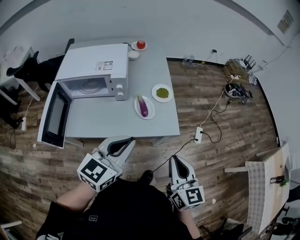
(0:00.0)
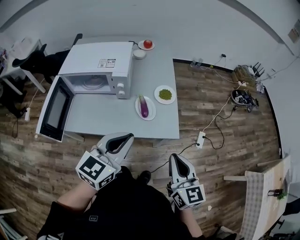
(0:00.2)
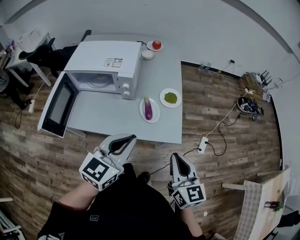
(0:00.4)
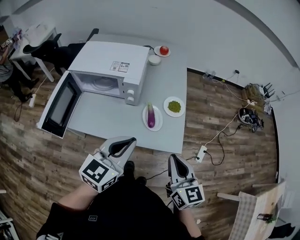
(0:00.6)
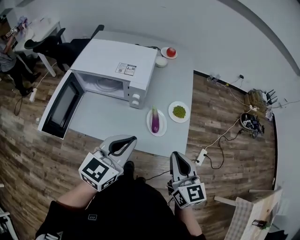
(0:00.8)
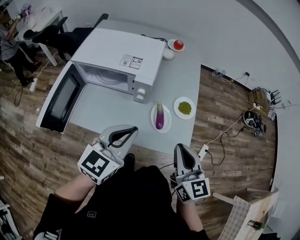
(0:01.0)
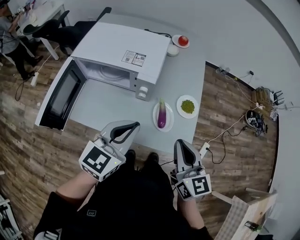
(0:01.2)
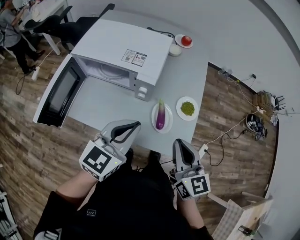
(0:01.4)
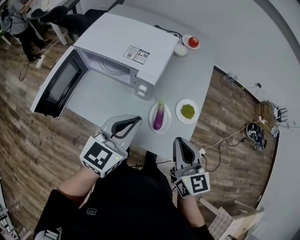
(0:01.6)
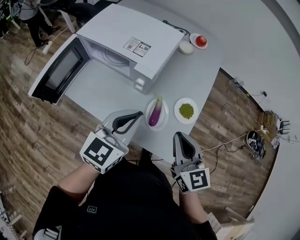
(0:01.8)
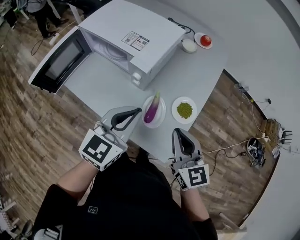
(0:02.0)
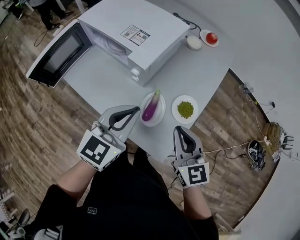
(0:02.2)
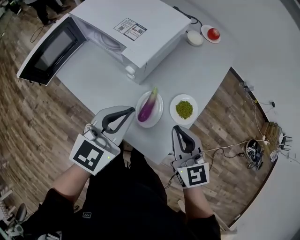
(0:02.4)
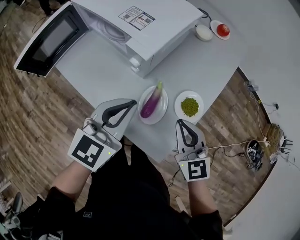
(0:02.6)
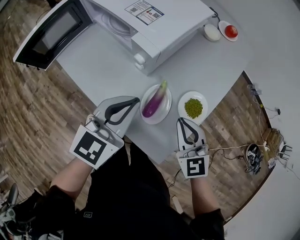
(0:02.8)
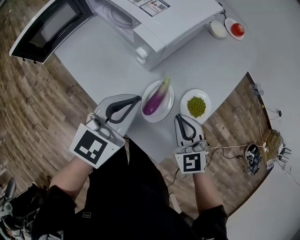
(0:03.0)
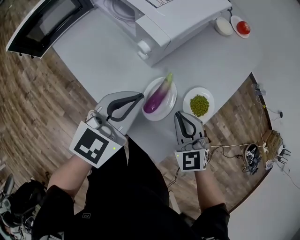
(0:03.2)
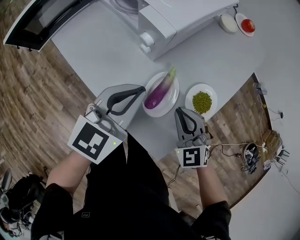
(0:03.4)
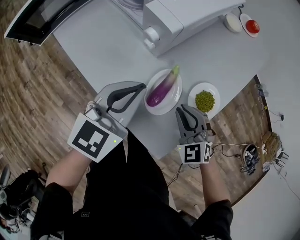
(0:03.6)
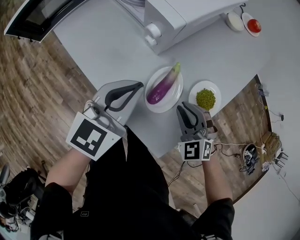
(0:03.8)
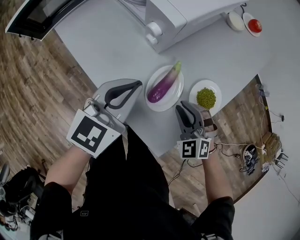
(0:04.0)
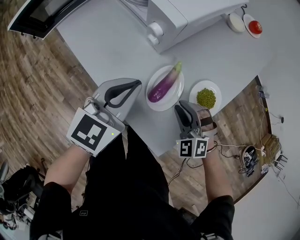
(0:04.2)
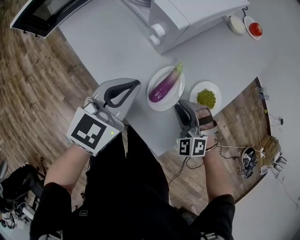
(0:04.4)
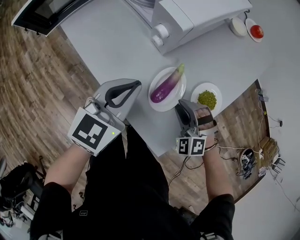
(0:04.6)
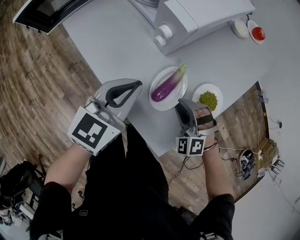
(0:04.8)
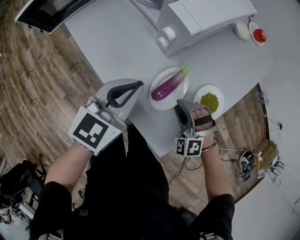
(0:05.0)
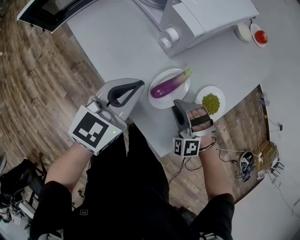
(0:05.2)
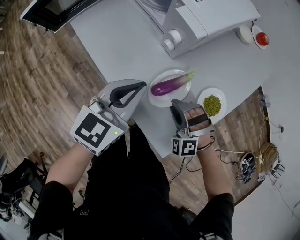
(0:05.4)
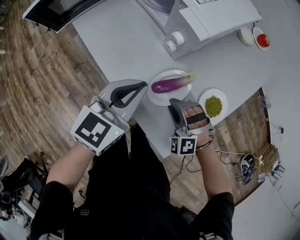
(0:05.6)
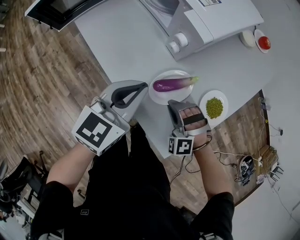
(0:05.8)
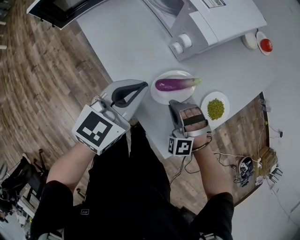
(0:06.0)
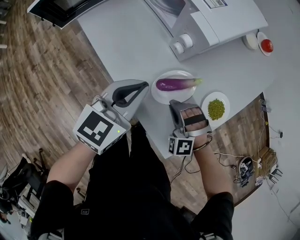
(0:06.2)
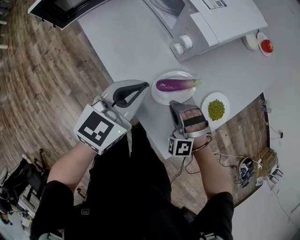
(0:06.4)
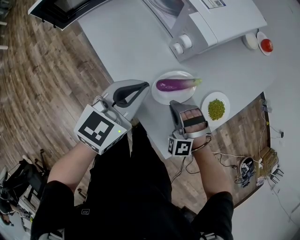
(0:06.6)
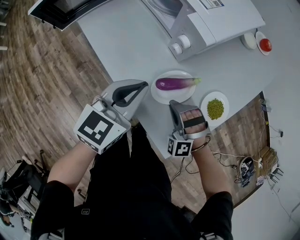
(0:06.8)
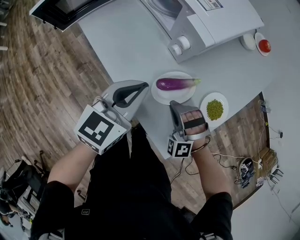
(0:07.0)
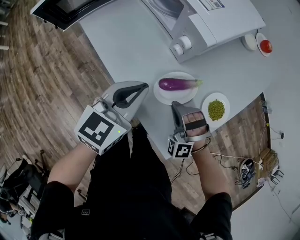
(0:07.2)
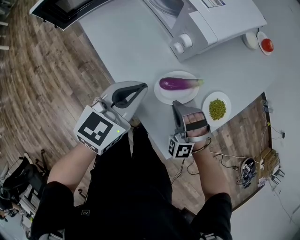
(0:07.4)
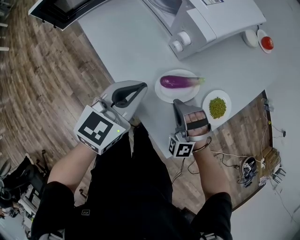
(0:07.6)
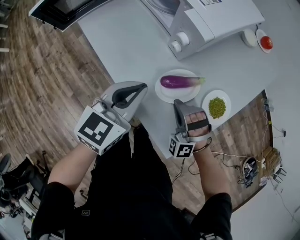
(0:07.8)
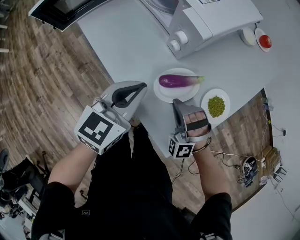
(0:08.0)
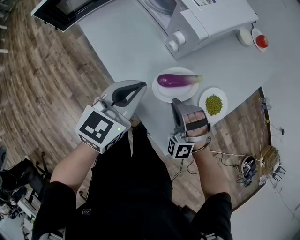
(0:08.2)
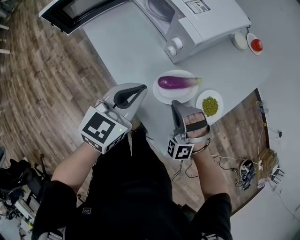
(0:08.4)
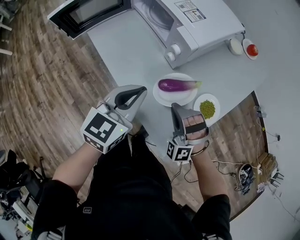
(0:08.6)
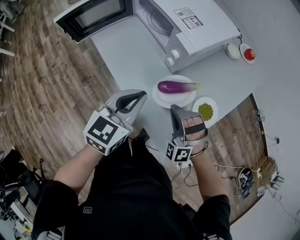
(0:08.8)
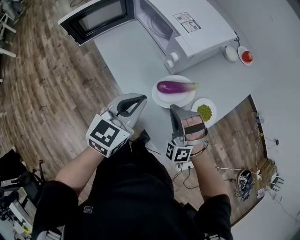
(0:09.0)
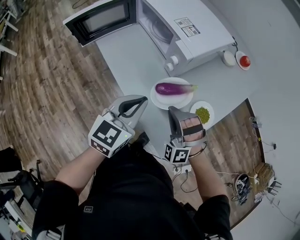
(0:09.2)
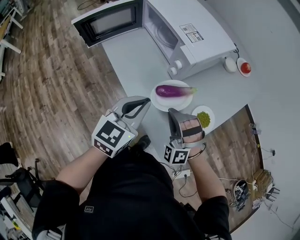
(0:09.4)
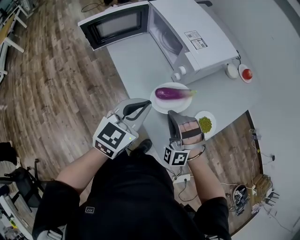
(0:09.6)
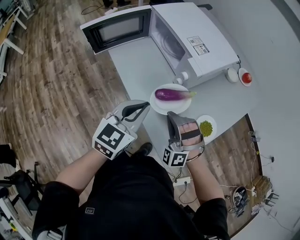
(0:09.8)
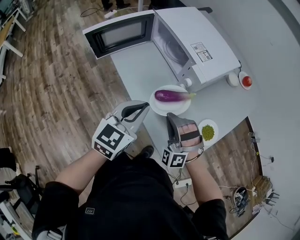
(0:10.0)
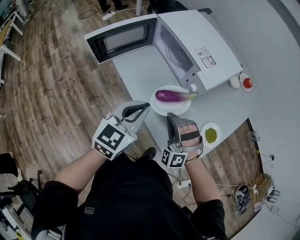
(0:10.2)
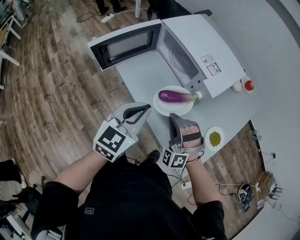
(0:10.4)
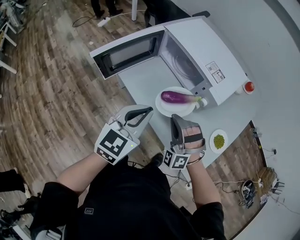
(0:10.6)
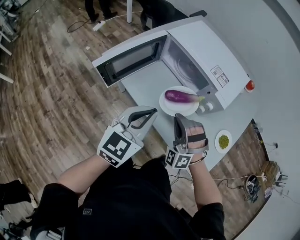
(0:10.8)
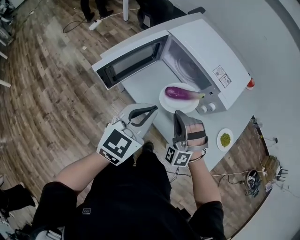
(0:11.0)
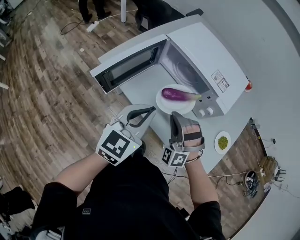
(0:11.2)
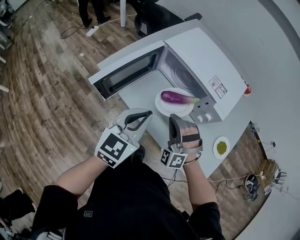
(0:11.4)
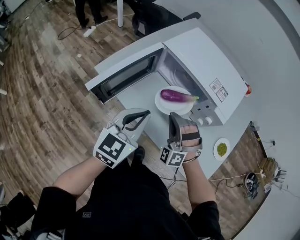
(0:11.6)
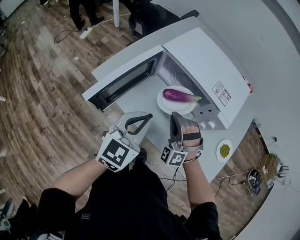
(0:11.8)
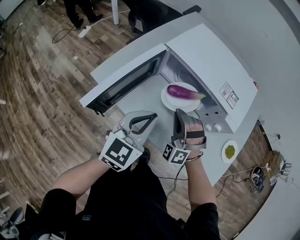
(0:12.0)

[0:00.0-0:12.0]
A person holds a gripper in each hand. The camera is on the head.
0:00.0 to 0:01.6: The left gripper ends up approximately 20 cm from where it was, and changes its angle by roughly 30 degrees. Meanwhile the right gripper changes place by roughly 25 cm, and rotates approximately 30 degrees.
0:01.6 to 0:03.0: The right gripper goes roughly 20 cm downward and forward, and swivels about 50 degrees, while the left gripper goes some 15 cm downward and to the right, and rotates approximately 20 degrees.
0:03.0 to 0:04.4: The right gripper moves downward, some 10 cm, rolls counterclockwise, seen from behind, by some 40 degrees, and opens up, while the left gripper changes place by some 5 cm.
0:04.4 to 0:06.0: The right gripper shifts about 10 cm to the left.
0:06.0 to 0:07.6: The grippers make only small movements.
0:07.6 to 0:09.0: The left gripper shifts approximately 10 cm upward; the right gripper shifts roughly 10 cm upward.
0:09.0 to 0:10.4: The grippers both shift to the left by some 15 cm.
0:10.4 to 0:12.0: The grippers both shift forward and to the left by roughly 20 cm. The right gripper swivels about 20 degrees.

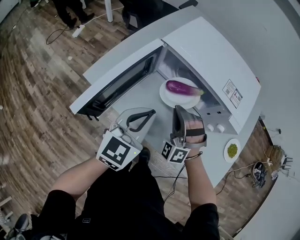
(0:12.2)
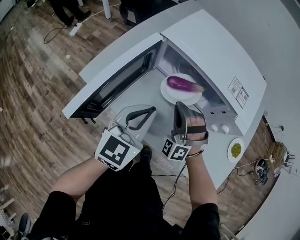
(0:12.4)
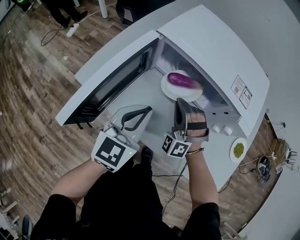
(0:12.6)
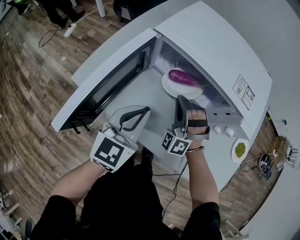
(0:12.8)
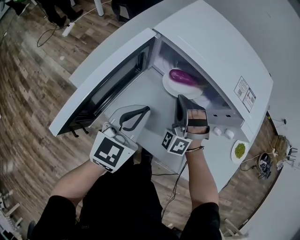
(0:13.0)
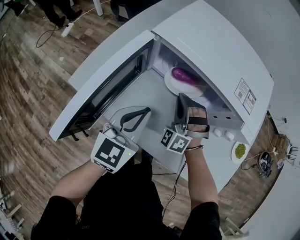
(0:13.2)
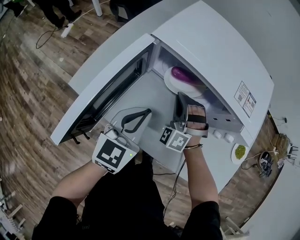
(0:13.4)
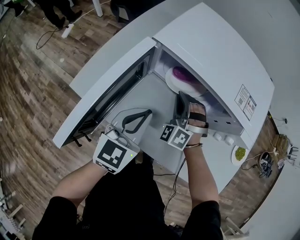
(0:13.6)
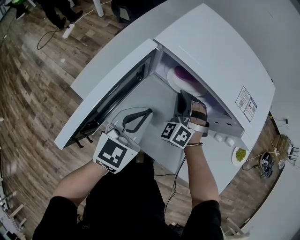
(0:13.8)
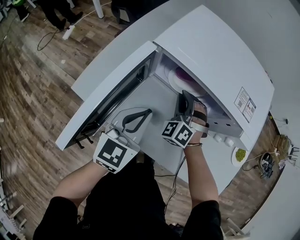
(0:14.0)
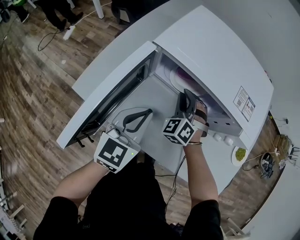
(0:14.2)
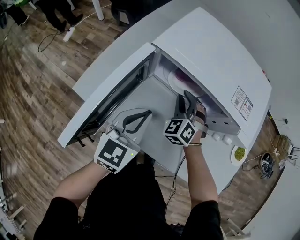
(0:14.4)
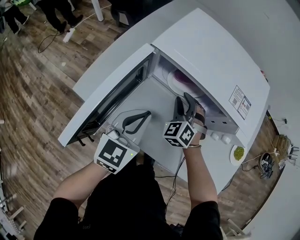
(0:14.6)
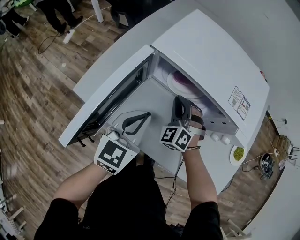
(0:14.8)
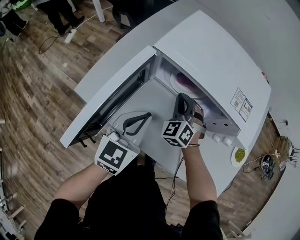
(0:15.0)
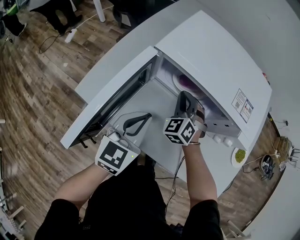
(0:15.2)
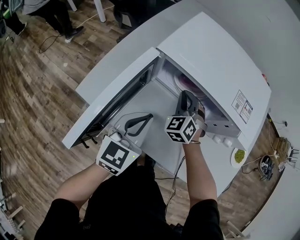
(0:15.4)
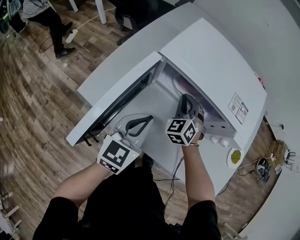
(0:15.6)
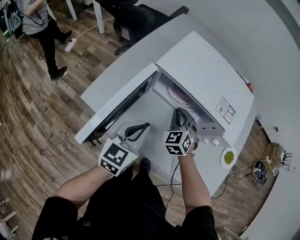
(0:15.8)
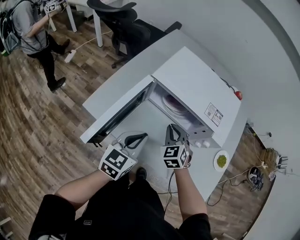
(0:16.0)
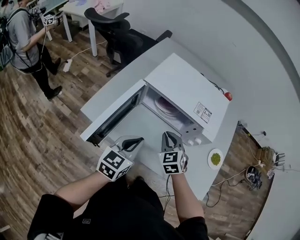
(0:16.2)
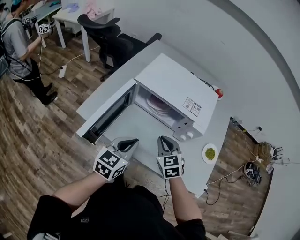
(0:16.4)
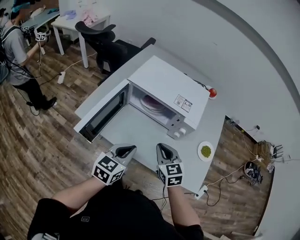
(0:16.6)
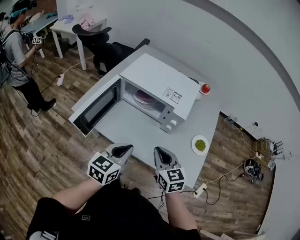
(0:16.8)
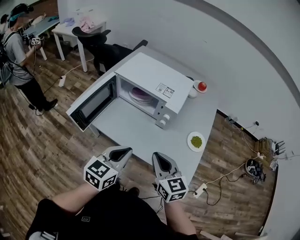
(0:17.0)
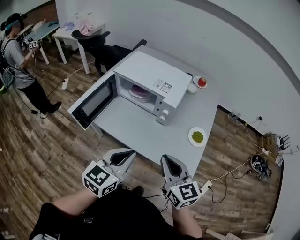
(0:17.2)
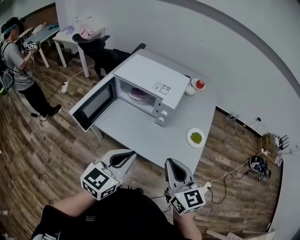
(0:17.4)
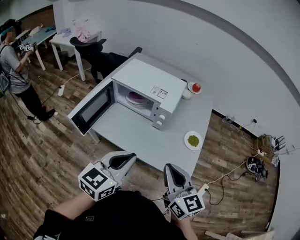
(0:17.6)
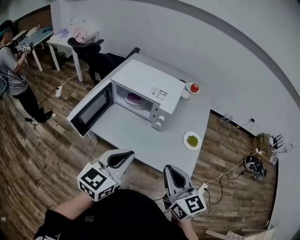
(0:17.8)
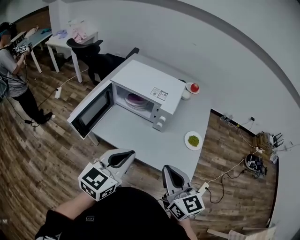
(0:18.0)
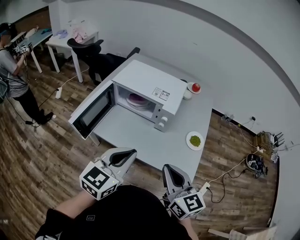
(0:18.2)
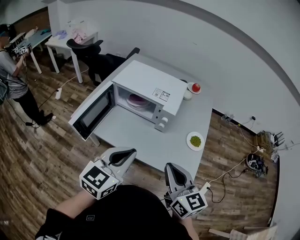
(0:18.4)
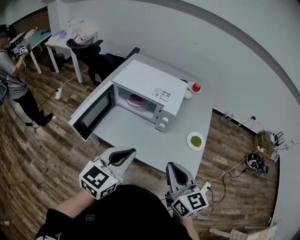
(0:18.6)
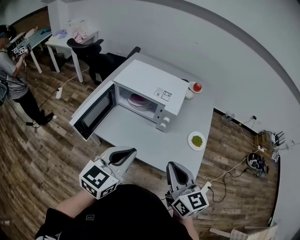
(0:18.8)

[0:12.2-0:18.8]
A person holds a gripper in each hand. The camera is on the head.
0:12.2 to 0:13.8: The left gripper moves forward and downward, some 10 cm. The right gripper moves forward and downward, approximately 15 cm, and changes its angle by some 20 degrees.
0:13.8 to 0:15.4: The right gripper turns by some 20 degrees, and opens, then closes once more.
0:15.4 to 0:17.2: The right gripper moves backward, upward and to the right, approximately 50 cm, and twists some 50 degrees clockwise, seen from behind, while the left gripper travels backward, to the right and upward by approximately 35 cm.
0:17.2 to 0:18.8: The right gripper changes place by approximately 5 cm. The left gripper travels upward by some 5 cm.

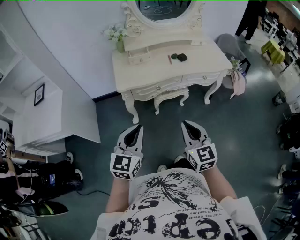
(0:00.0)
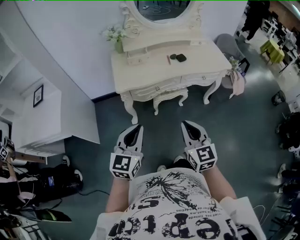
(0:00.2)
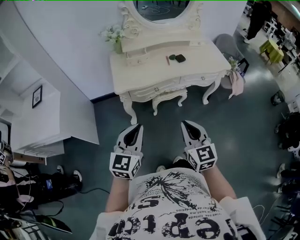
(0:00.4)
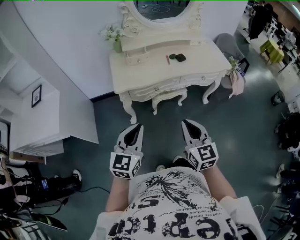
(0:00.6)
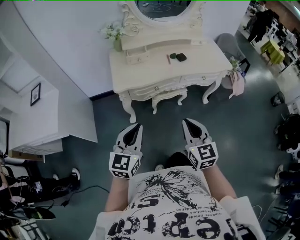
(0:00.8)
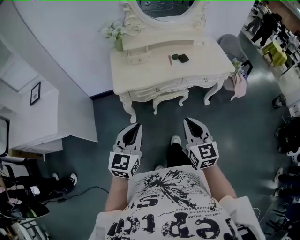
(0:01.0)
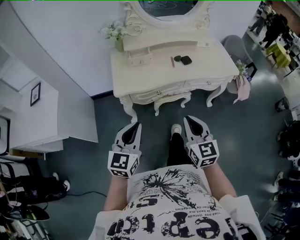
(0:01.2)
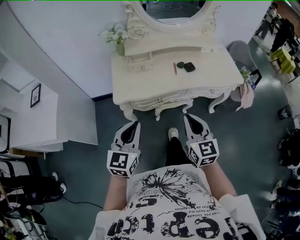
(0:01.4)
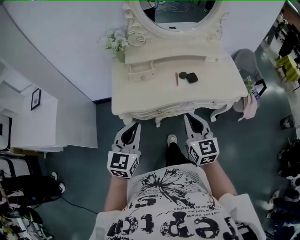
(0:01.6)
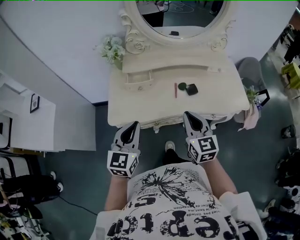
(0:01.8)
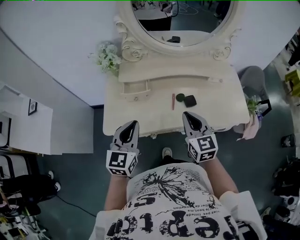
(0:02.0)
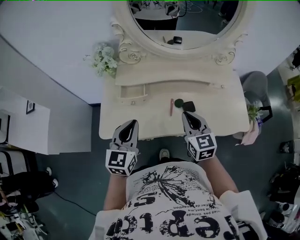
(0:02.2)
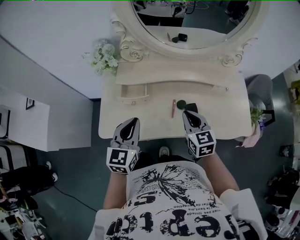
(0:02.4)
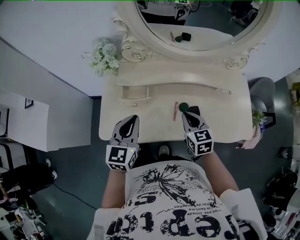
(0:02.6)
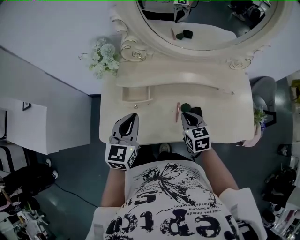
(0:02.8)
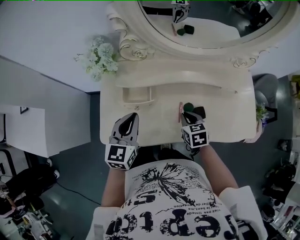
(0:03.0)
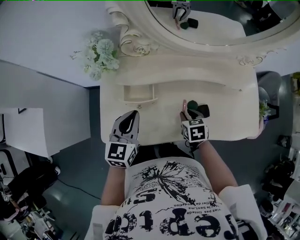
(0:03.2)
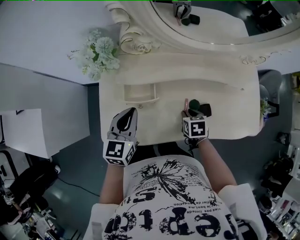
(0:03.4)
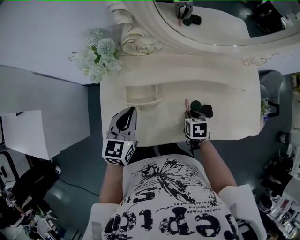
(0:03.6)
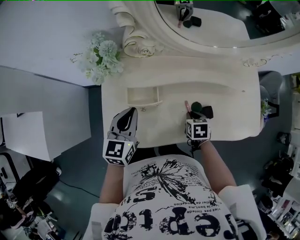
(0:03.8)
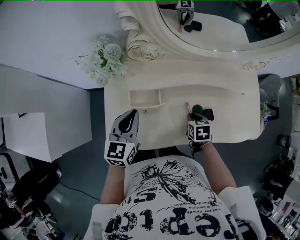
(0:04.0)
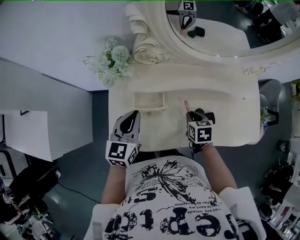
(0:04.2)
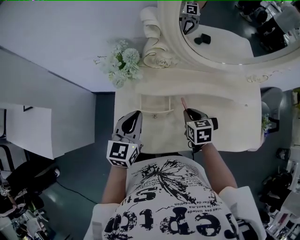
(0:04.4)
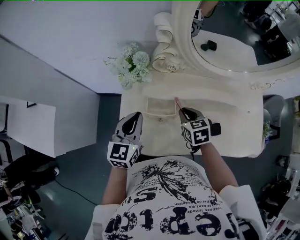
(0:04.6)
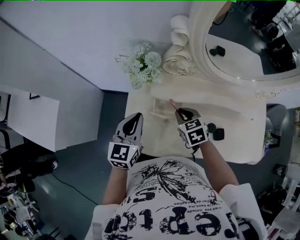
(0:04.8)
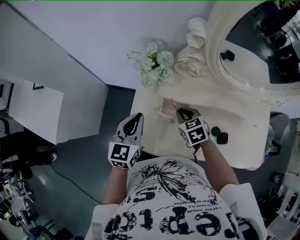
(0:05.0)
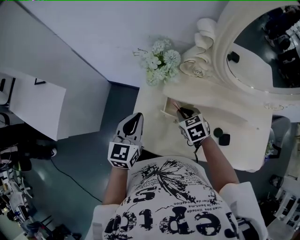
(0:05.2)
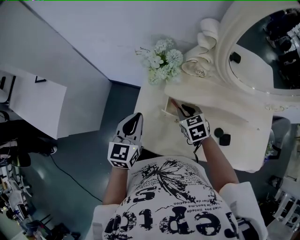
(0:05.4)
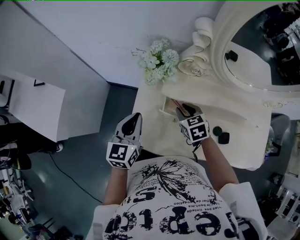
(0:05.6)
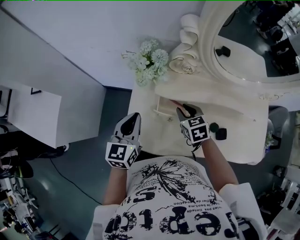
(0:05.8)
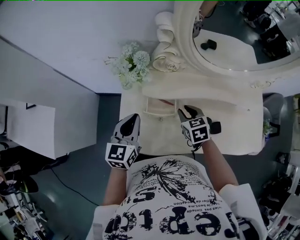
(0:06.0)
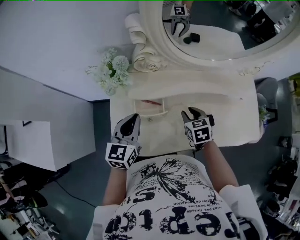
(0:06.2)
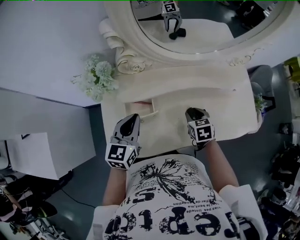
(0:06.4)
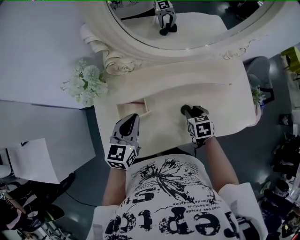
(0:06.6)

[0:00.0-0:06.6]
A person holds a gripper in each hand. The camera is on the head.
0:00.0 to 0:01.6: The two grippers go about 25 cm forward.
0:01.6 to 0:03.2: The right gripper heads forward and downward, covering approximately 35 cm, and tips its fingers downward by roughly 50 degrees. Meanwhile the left gripper is displaced forward by roughly 30 cm.
0:03.2 to 0:05.0: The right gripper is displaced to the left and forward by approximately 20 cm, and swivels approximately 30 degrees. Meanwhile the left gripper travels to the left by approximately 15 cm.
0:05.0 to 0:06.6: The right gripper moves about 25 cm, and turns by some 40 degrees; the left gripper changes place by some 15 cm, and rotates about 20 degrees.
